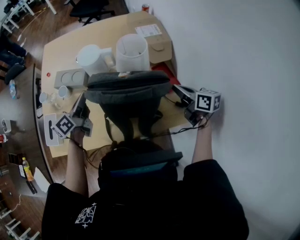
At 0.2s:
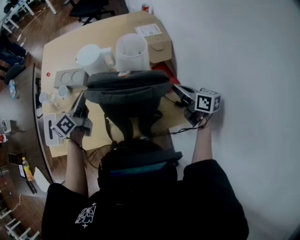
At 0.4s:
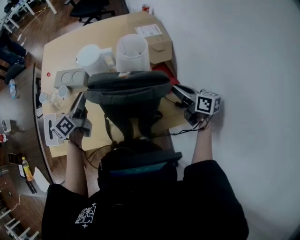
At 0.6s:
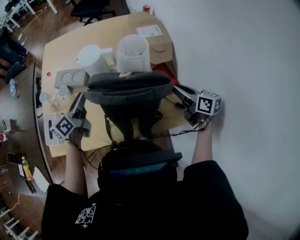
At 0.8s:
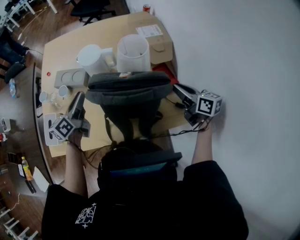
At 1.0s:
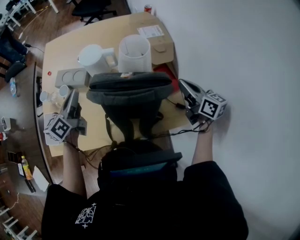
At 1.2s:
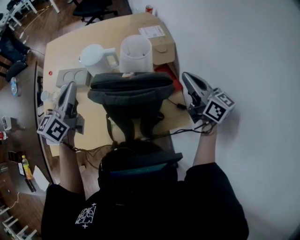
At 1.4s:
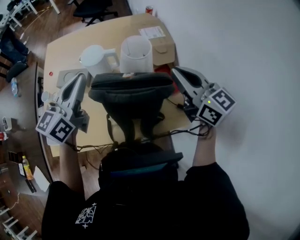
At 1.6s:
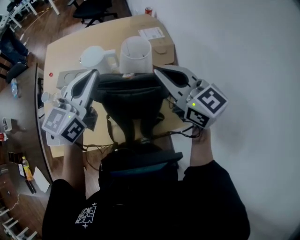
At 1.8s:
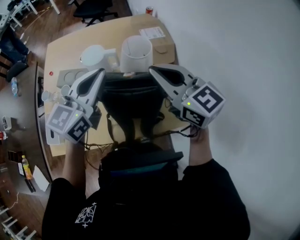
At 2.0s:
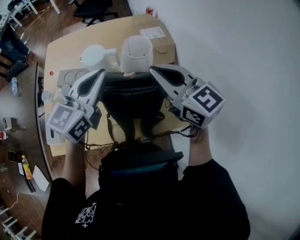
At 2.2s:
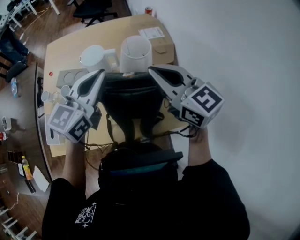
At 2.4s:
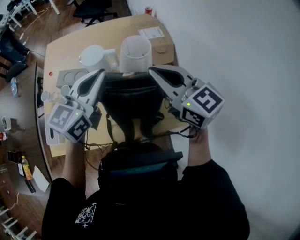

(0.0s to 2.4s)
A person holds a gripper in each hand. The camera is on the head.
0.0s - 1.2s: The two grippers go approximately 10 cm upward. The left gripper rotates approximately 20 degrees, and opens, then closes once more. Meanwhile the right gripper changes its angle by some 20 degrees, and opens, then closes once more.
1.2s - 2.4s: The right gripper is displaced to the left and upward by approximately 15 cm, and changes its angle by about 20 degrees. The left gripper travels to the right and upward by about 15 cm, and changes its angle by approximately 20 degrees.

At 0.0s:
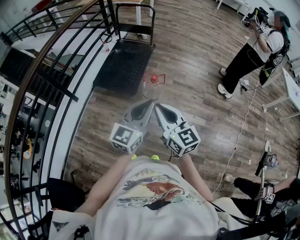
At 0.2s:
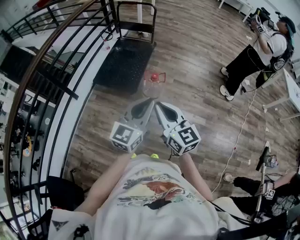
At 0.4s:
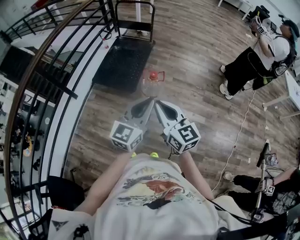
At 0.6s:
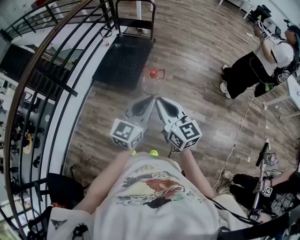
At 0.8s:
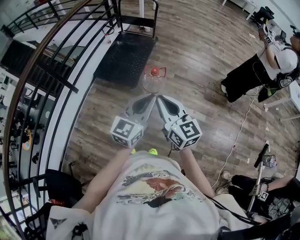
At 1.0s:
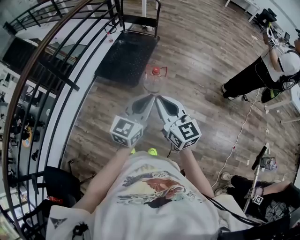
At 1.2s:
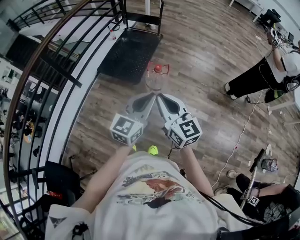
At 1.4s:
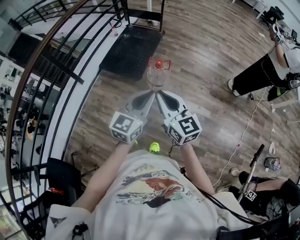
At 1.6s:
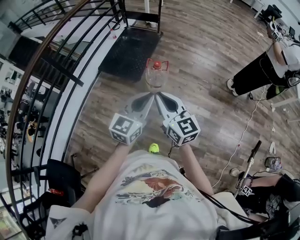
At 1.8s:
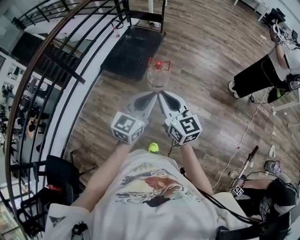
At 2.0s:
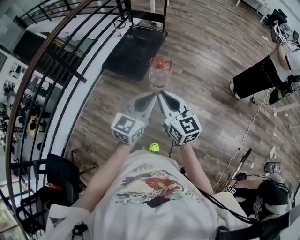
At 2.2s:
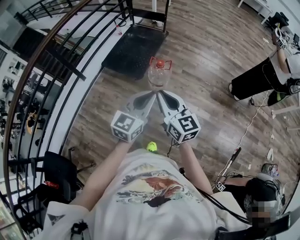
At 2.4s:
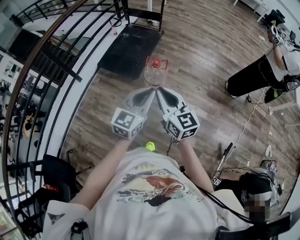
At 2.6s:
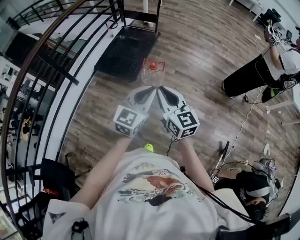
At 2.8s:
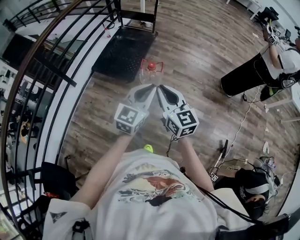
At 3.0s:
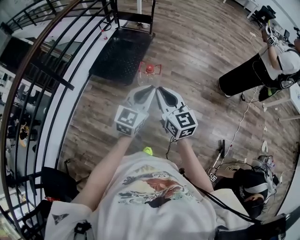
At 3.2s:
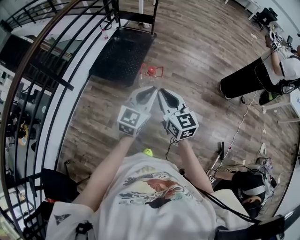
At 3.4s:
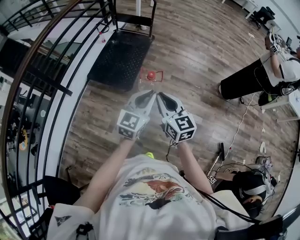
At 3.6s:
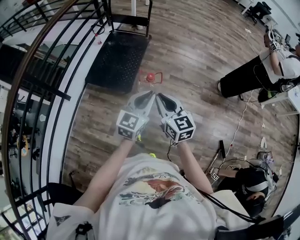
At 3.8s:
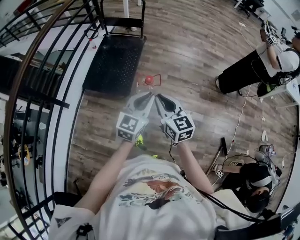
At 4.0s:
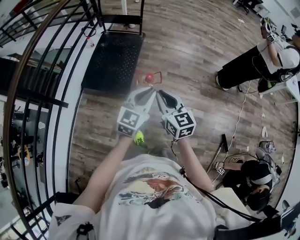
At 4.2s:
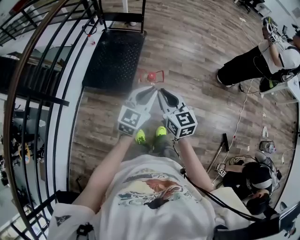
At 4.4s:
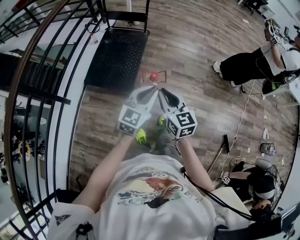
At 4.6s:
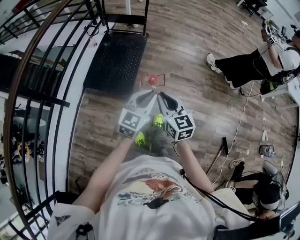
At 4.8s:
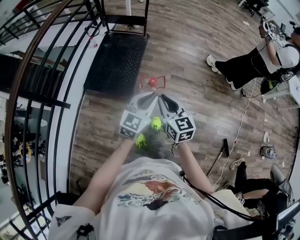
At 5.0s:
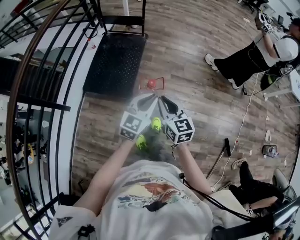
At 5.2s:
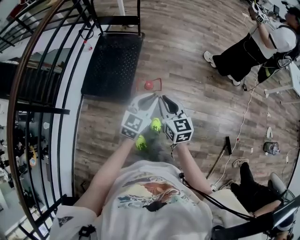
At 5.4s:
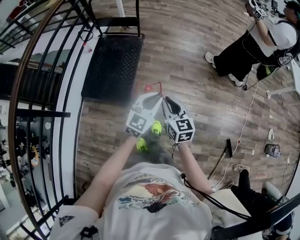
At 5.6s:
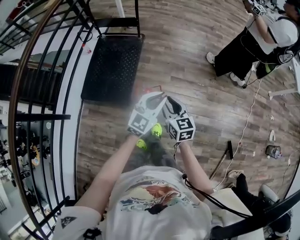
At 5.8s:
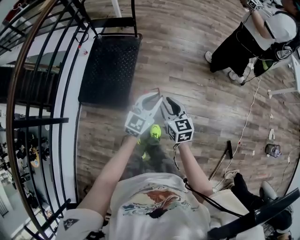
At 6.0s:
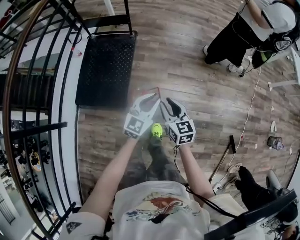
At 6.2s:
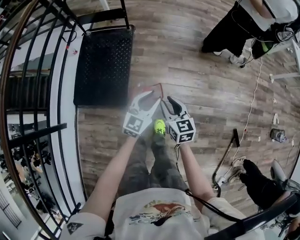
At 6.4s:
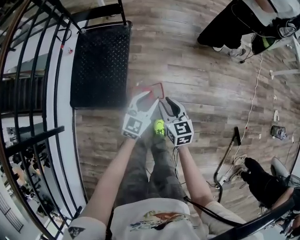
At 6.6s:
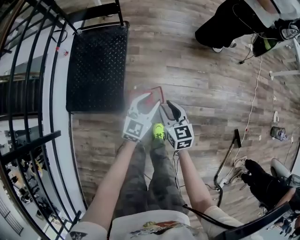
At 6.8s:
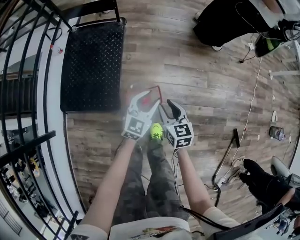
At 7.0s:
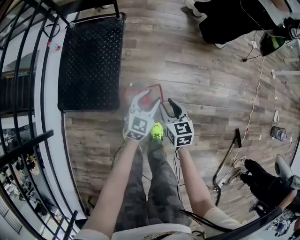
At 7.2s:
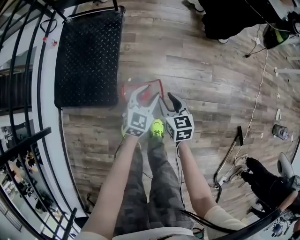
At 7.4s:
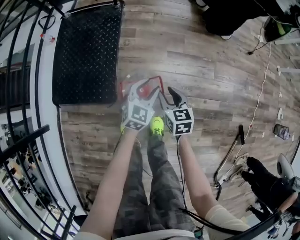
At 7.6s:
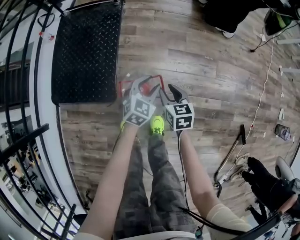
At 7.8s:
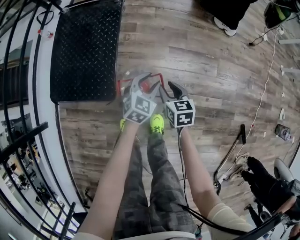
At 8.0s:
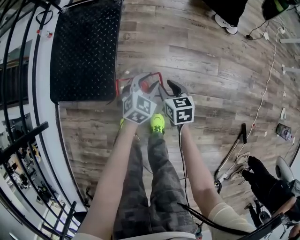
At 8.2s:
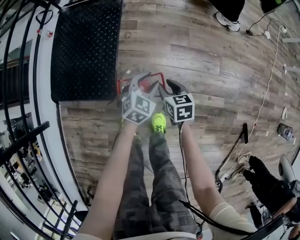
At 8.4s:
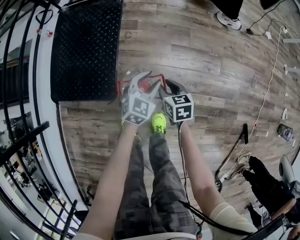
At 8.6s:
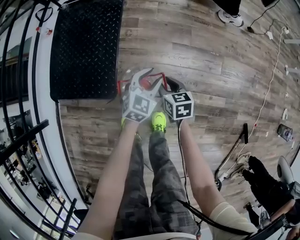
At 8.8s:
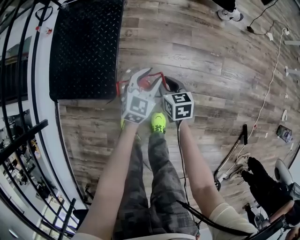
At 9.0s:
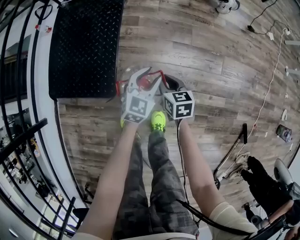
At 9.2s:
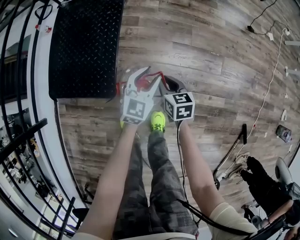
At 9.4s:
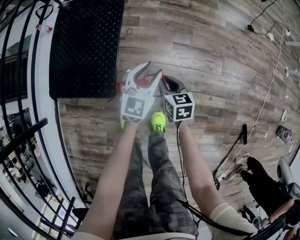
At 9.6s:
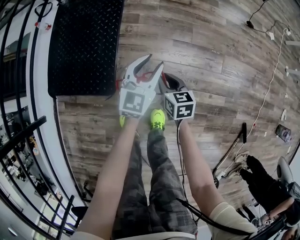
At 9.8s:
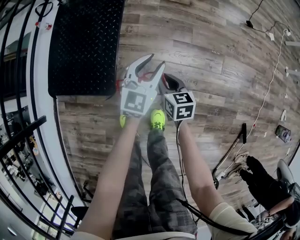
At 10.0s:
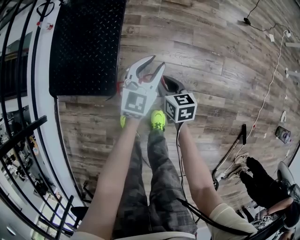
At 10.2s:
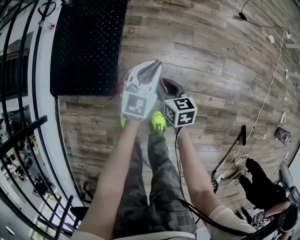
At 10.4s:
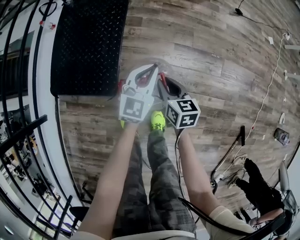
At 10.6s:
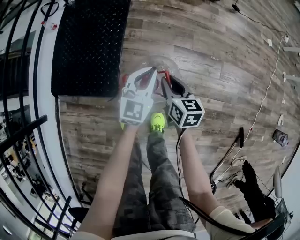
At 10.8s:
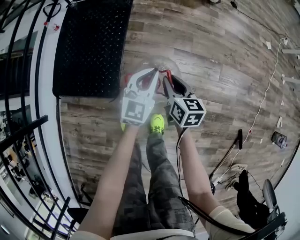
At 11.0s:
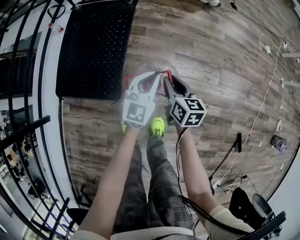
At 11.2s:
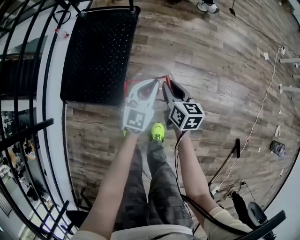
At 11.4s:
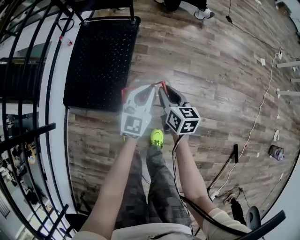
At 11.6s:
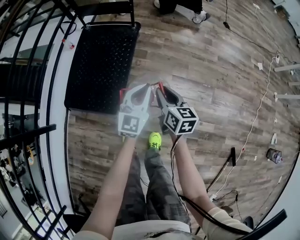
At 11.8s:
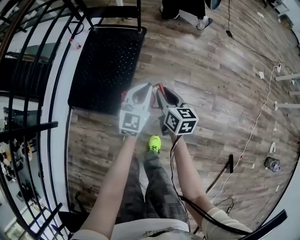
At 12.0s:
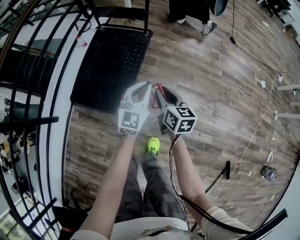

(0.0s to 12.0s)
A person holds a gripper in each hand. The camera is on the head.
0.0s - 1.6s: Both grippers move to the right, some 5 cm.
1.6s - 3.0s: Both grippers travel together forward, roughly 10 cm.
3.0s - 4.4s: The grippers both shift forward by approximately 15 cm.
4.4s - 6.0s: The two grippers go roughly 30 cm forward and downward.
6.0s - 7.6s: Both grippers travel together downward, about 35 cm. The left gripper changes its angle by approximately 20 degrees, and opens up.
7.6s - 9.0s: The right gripper shifts approximately 5 cm downward.
9.0s - 10.4s: Both grippers move upward, roughly 5 cm. The left gripper closes up.
10.4s - 12.0s: Both grippers travel together upward, roughly 25 cm.

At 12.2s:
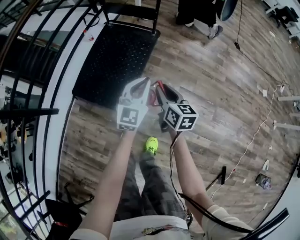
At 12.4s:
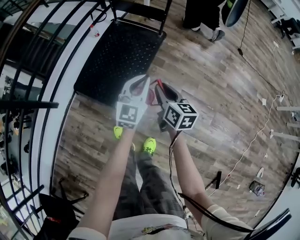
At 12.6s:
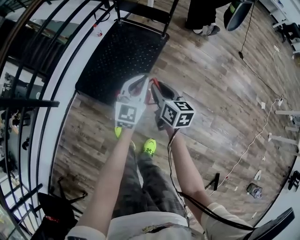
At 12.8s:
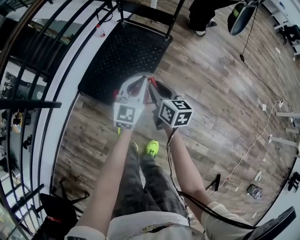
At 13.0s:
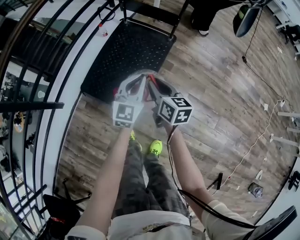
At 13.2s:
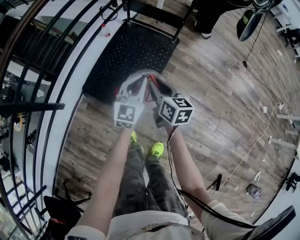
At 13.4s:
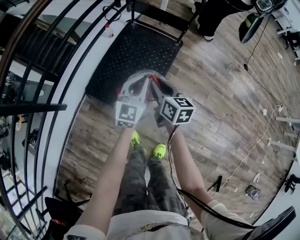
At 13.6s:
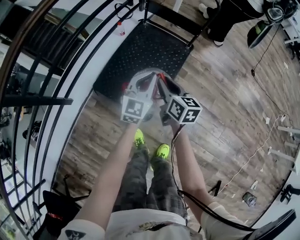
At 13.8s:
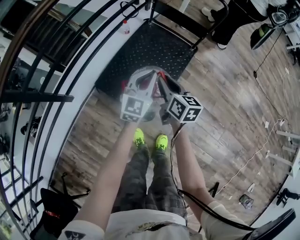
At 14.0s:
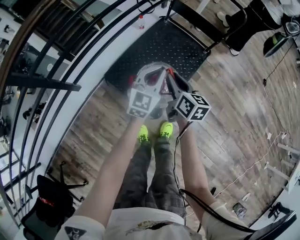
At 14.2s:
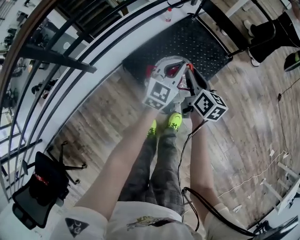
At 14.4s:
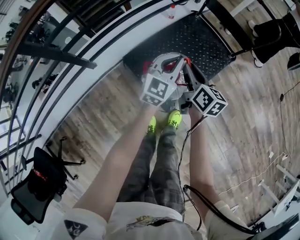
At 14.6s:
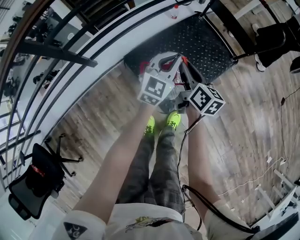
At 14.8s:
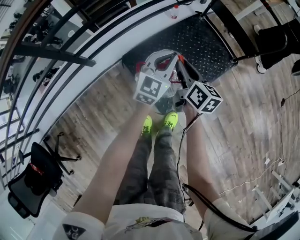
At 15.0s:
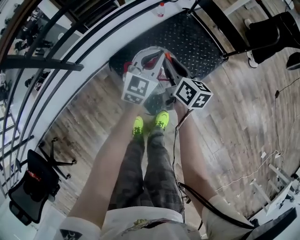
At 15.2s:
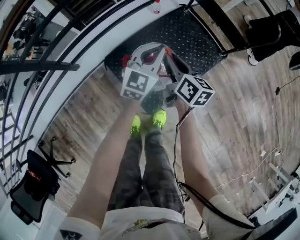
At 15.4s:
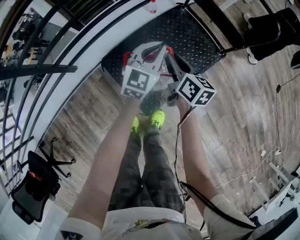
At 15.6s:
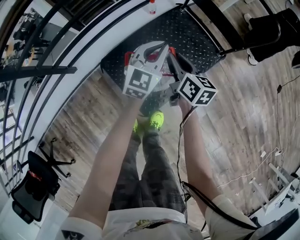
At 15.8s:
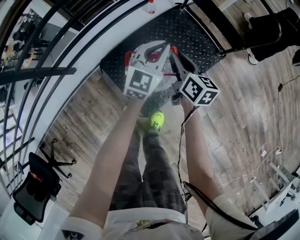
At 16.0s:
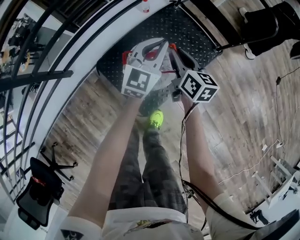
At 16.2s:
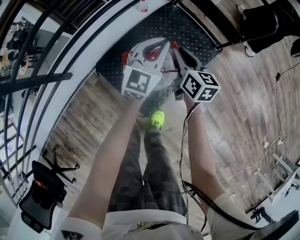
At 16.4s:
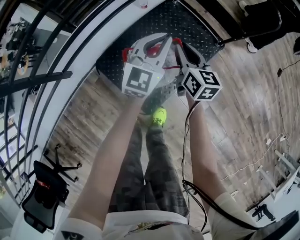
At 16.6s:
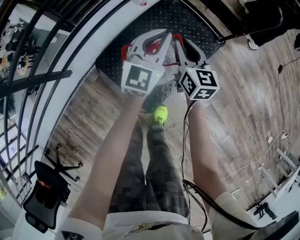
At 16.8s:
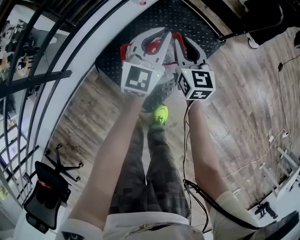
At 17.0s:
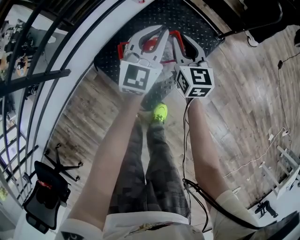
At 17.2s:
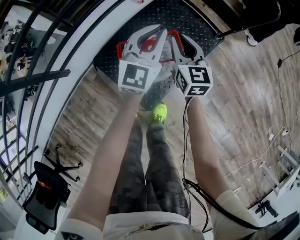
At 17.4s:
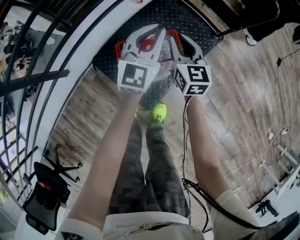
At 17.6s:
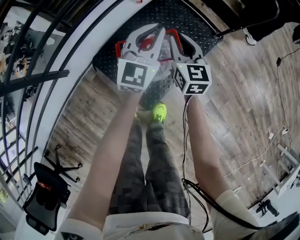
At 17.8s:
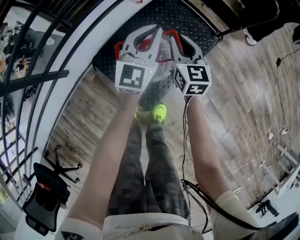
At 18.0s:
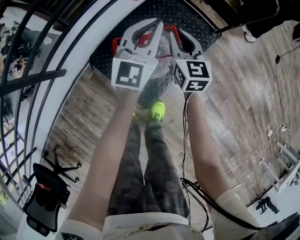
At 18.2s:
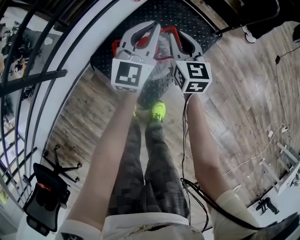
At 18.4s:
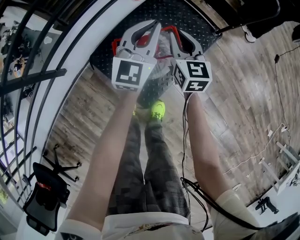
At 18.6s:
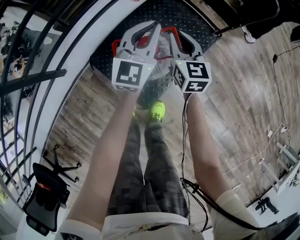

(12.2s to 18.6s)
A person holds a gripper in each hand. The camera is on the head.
12.2s - 13.8s: Both grippers move to the left and forward, roughly 35 cm.
13.8s - 15.4s: The right gripper travels forward and downward by about 20 cm; the left gripper moves forward, roughly 15 cm.
15.4s - 17.0s: The right gripper shifts by some 5 cm, and changes its angle by approximately 30 degrees.
17.0s - 18.6s: The grippers move only a little.

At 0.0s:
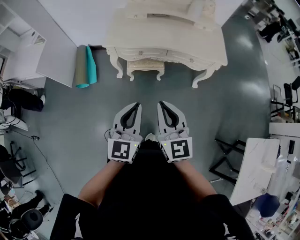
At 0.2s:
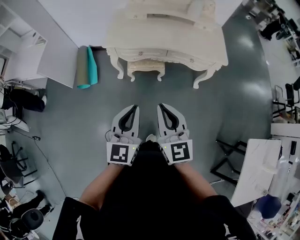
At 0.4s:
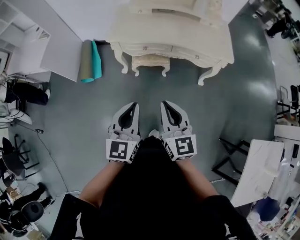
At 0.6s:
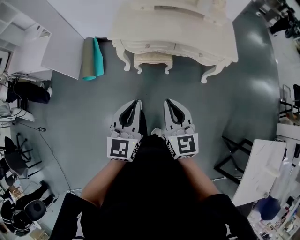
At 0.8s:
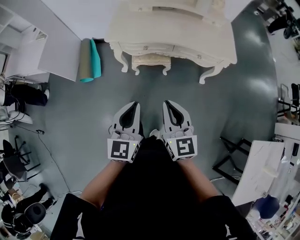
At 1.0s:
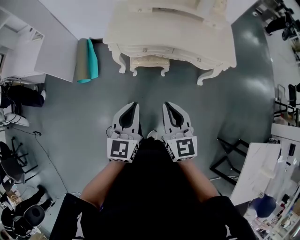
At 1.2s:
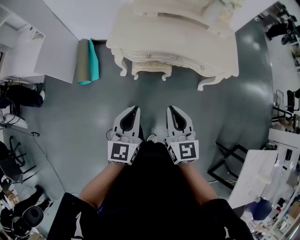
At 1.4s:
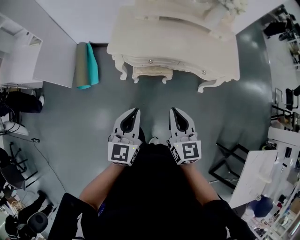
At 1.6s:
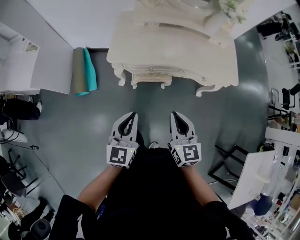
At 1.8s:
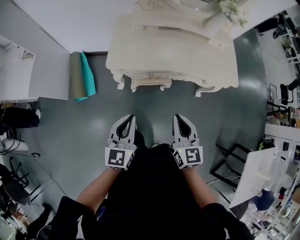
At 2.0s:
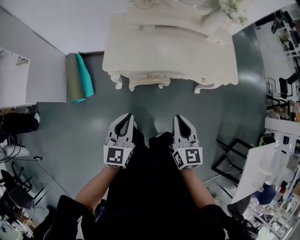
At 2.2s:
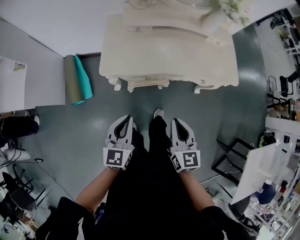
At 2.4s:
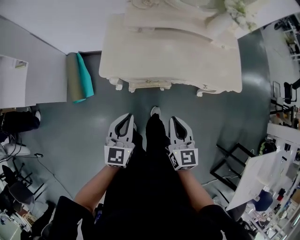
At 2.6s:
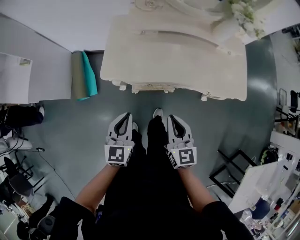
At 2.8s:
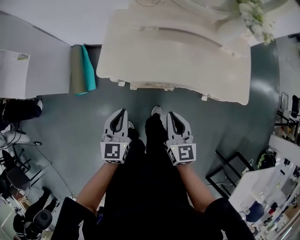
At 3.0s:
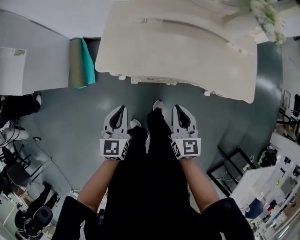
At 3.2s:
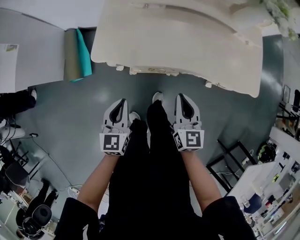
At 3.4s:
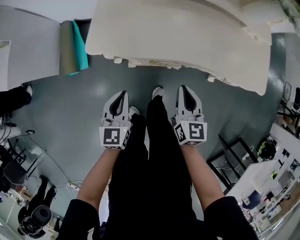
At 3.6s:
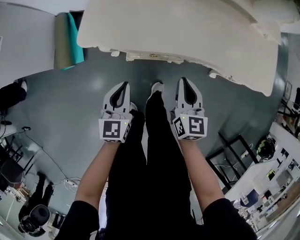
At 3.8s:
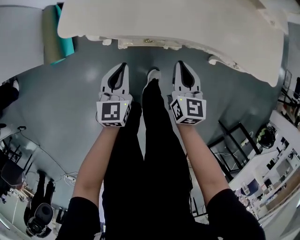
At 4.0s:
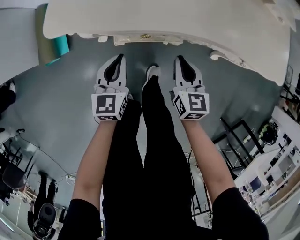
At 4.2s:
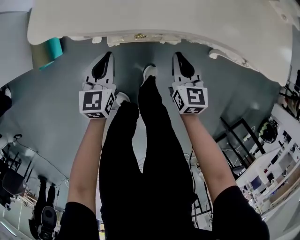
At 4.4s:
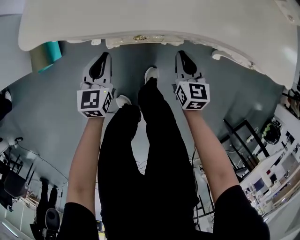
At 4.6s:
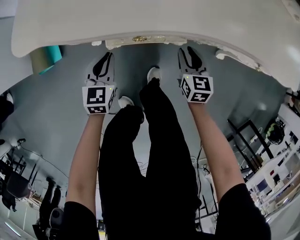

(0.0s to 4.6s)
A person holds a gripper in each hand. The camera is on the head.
0.0s - 1.6s: The left gripper shifts about 20 cm forward and to the left, while the right gripper moves forward and downward, about 20 cm.
1.6s - 3.0s: Both grippers travel together forward and downward, roughly 20 cm.
3.0s - 4.6s: The two grippers go some 40 cm downward.
